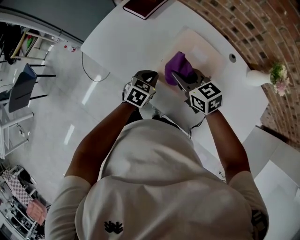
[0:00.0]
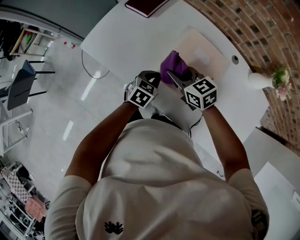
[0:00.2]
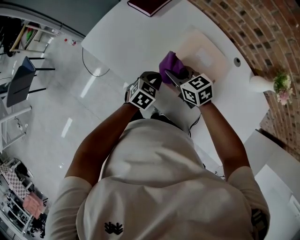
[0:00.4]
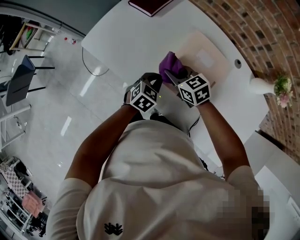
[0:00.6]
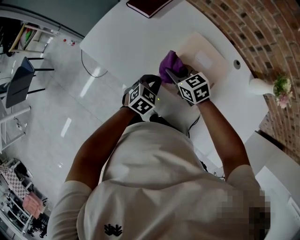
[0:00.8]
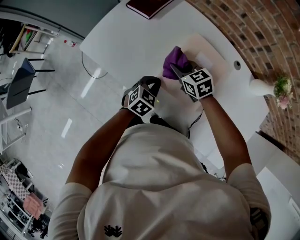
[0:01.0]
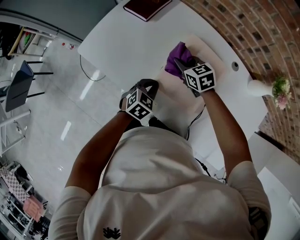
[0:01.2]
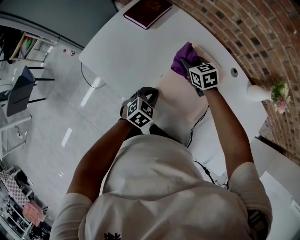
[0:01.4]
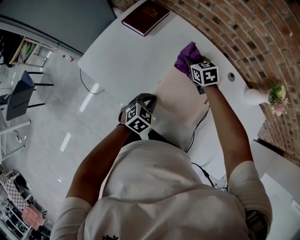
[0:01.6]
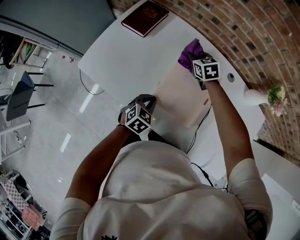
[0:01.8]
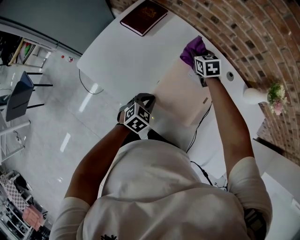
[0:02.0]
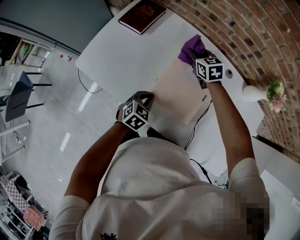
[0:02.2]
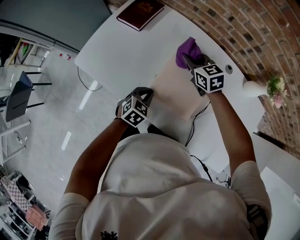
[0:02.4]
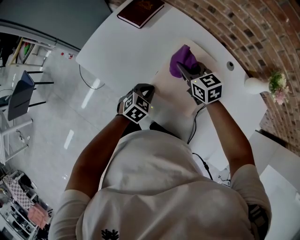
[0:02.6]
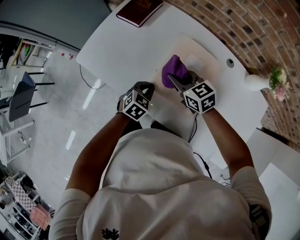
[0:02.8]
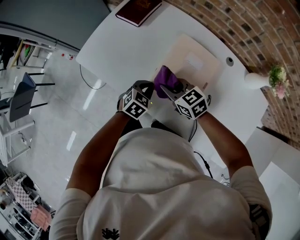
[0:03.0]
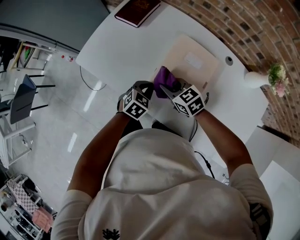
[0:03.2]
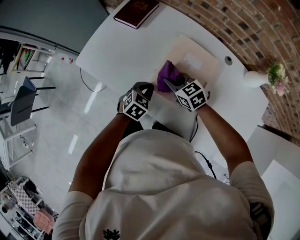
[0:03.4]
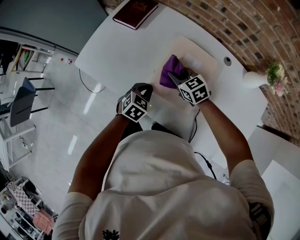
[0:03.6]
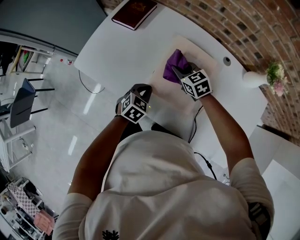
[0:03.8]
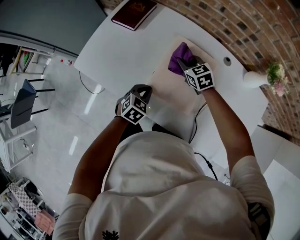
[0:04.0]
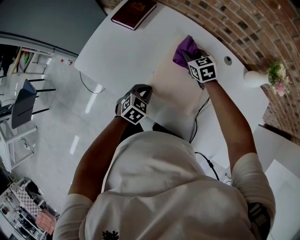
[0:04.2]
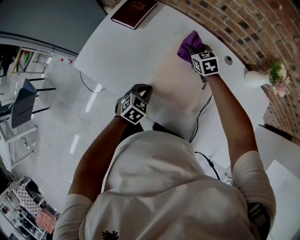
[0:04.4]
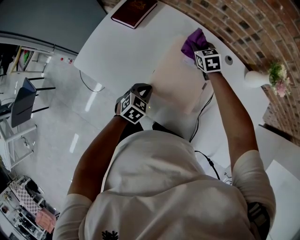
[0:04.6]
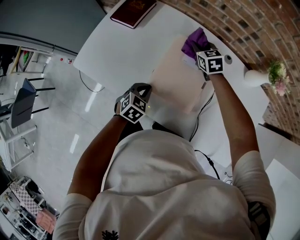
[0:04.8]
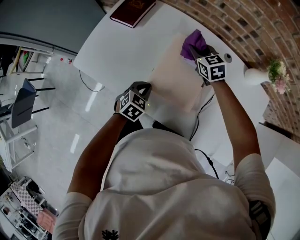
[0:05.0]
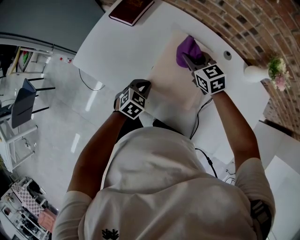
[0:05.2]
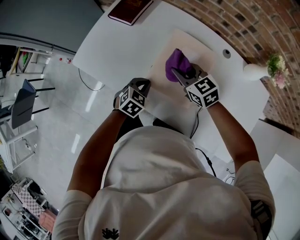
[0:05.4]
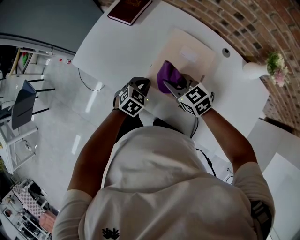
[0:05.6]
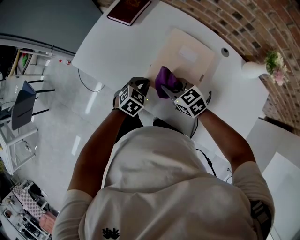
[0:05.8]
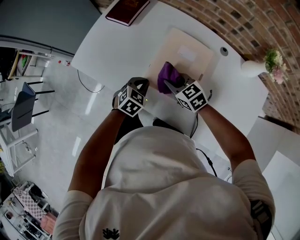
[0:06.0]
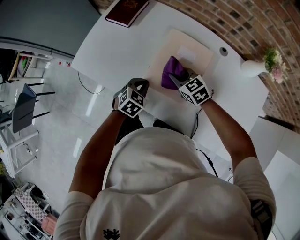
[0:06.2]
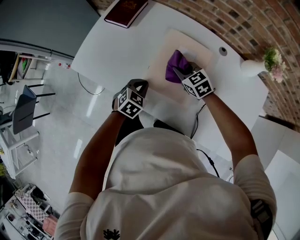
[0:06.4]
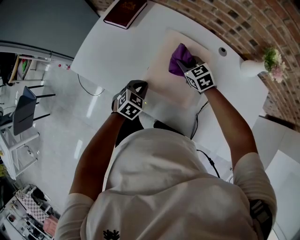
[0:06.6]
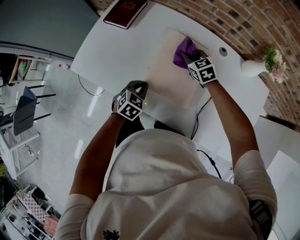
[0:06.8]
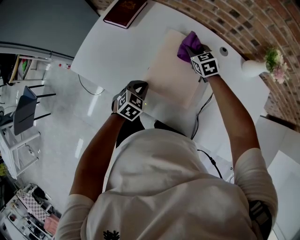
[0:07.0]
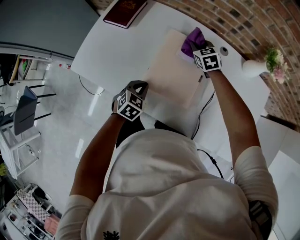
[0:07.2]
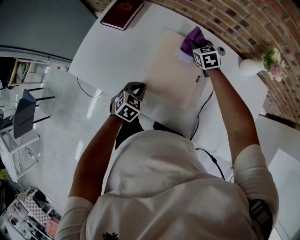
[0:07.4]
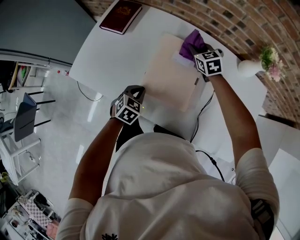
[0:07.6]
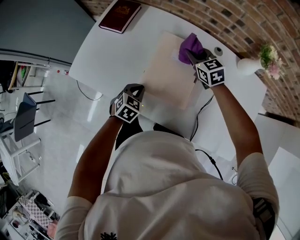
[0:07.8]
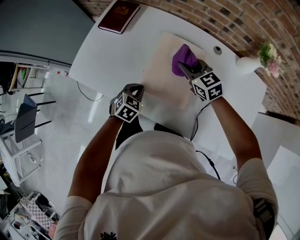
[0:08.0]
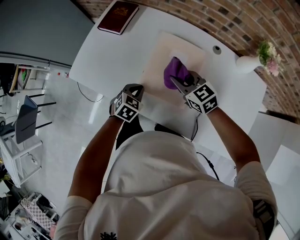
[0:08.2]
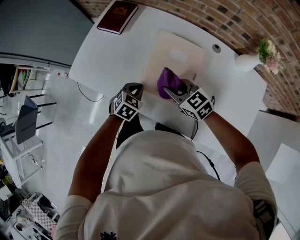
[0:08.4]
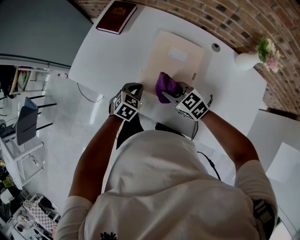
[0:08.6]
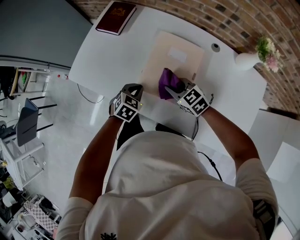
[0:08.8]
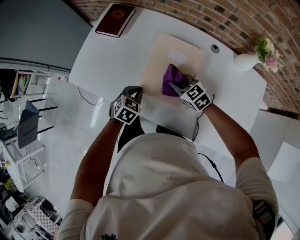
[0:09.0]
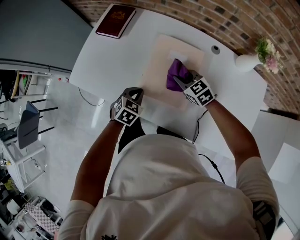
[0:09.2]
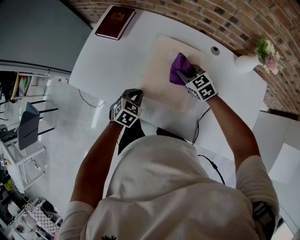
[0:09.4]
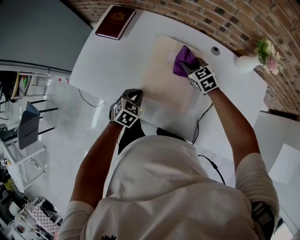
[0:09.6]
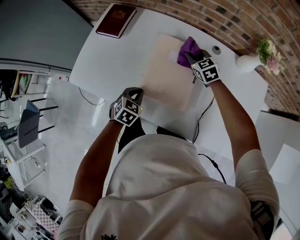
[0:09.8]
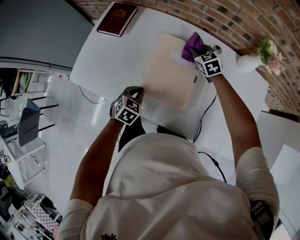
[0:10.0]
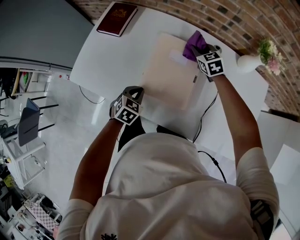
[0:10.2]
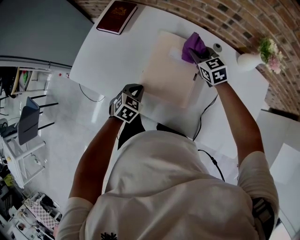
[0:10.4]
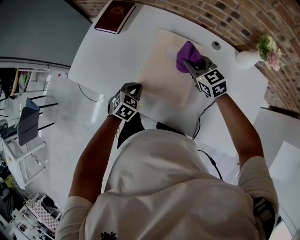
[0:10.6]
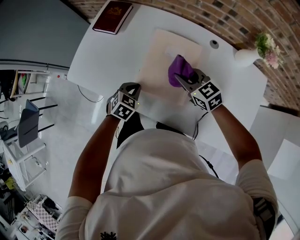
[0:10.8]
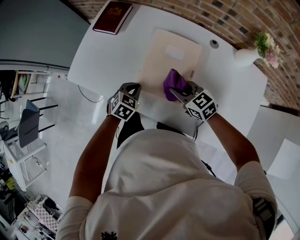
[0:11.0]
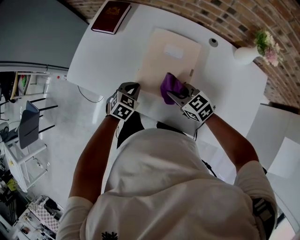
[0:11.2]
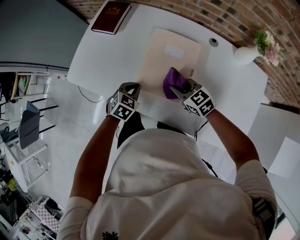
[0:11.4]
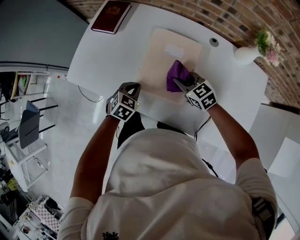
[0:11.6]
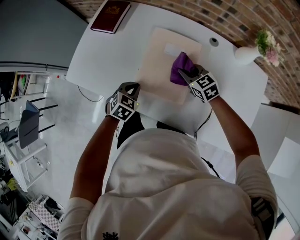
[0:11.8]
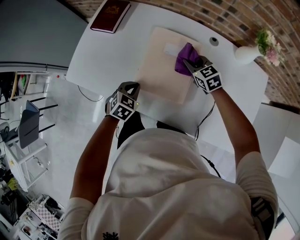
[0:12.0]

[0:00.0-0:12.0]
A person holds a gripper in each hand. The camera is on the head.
0:00.0 to 0:01.6: The right gripper travels forward and downward by some 25 cm, and rotates roughly 20 degrees.
0:01.6 to 0:03.0: The right gripper shifts approximately 20 cm backward, and swivels roughly 20 degrees.
0:03.0 to 0:04.4: The right gripper heads forward and to the right, covering some 25 cm, and rotates about 30 degrees.
0:04.4 to 0:06.0: The right gripper shifts roughly 20 cm backward, and swivels approximately 20 degrees.
0:06.0 to 0:07.6: The right gripper moves forward and to the right, some 25 cm, and turns by approximately 30 degrees.
0:07.6 to 0:09.0: The right gripper goes approximately 20 cm backward and to the left, and turns by approximately 20 degrees.
0:09.0 to 0:10.4: The right gripper travels forward and to the right by roughly 15 cm.
0:10.4 to 0:12.0: The right gripper travels backward and back again, about 20 cm each way.

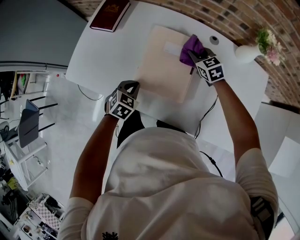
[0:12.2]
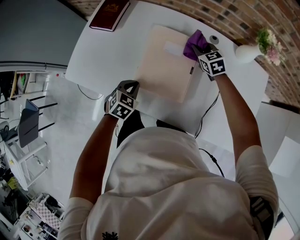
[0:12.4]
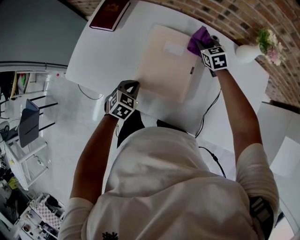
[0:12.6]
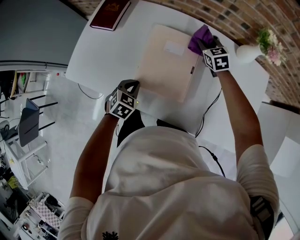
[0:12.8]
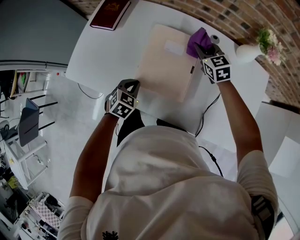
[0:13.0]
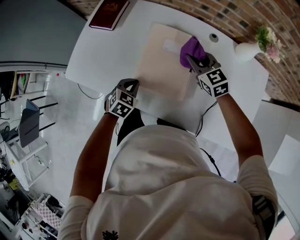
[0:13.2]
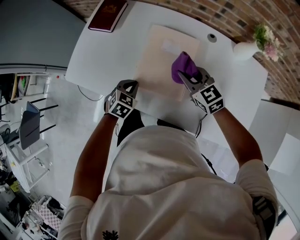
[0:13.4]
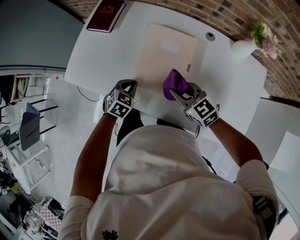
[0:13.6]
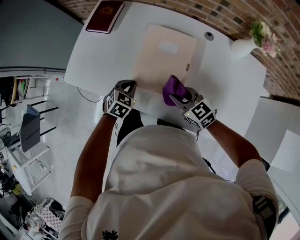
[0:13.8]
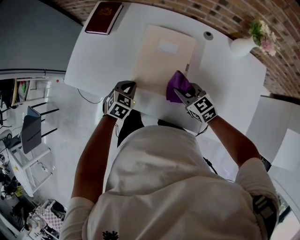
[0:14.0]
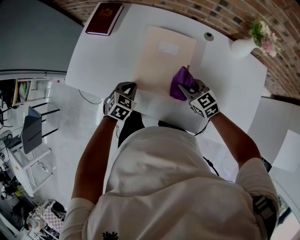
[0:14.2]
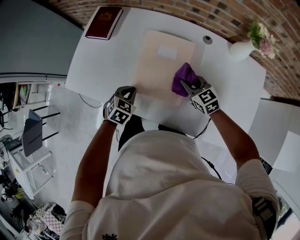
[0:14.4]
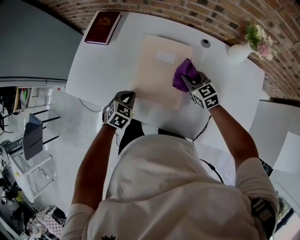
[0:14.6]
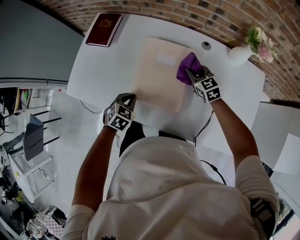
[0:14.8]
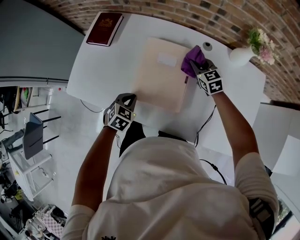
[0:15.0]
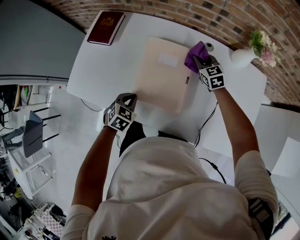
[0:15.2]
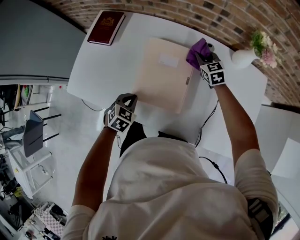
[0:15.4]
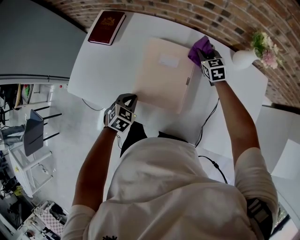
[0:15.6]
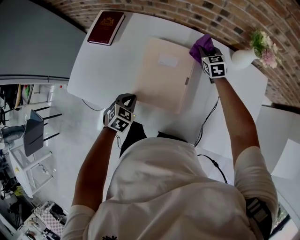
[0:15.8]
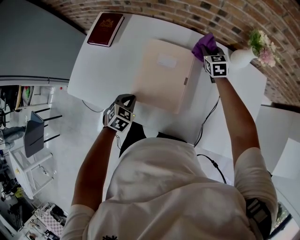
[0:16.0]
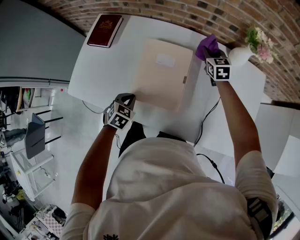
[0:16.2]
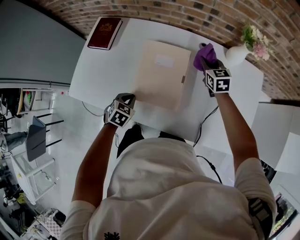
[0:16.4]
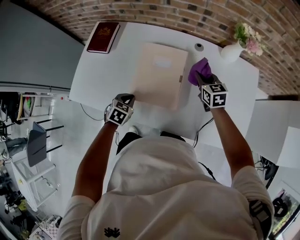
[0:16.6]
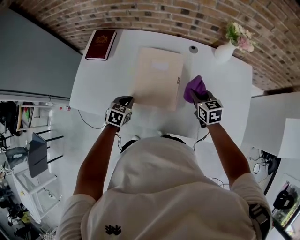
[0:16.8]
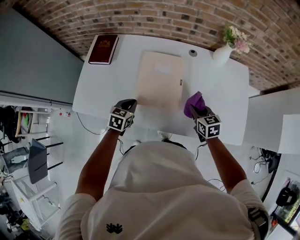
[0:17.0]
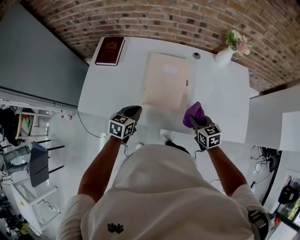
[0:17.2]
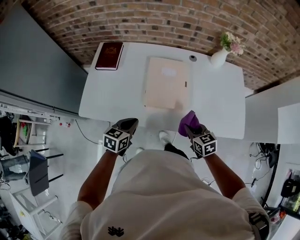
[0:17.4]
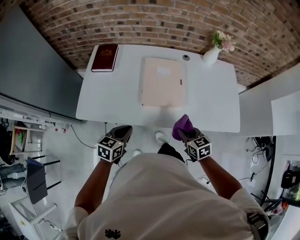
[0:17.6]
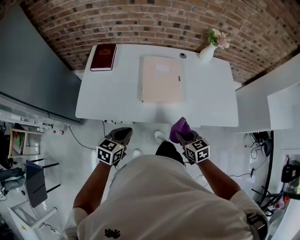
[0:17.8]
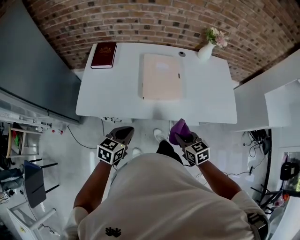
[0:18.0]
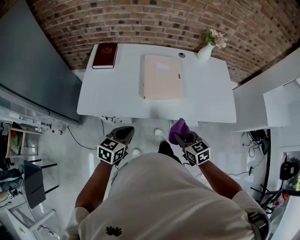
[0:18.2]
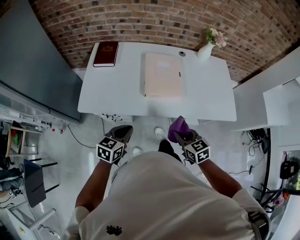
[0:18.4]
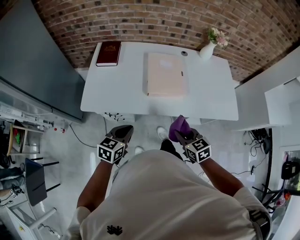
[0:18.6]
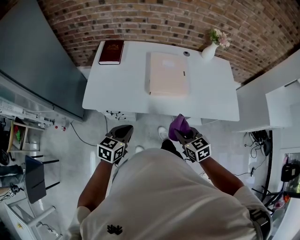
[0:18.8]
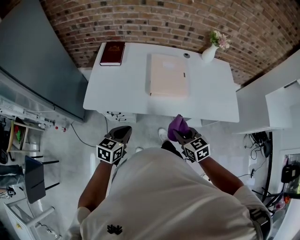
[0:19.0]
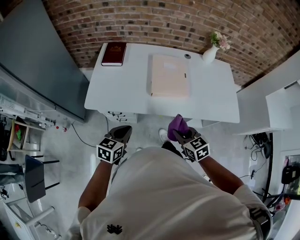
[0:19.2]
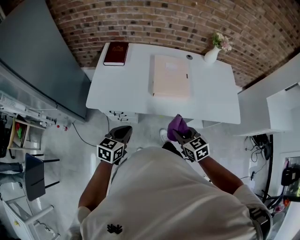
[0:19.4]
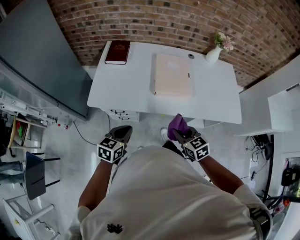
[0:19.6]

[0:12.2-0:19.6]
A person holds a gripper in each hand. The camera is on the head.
0:12.2 to 0:13.6: The right gripper shifts approximately 20 cm backward and to the left.
0:13.6 to 0:15.2: The right gripper heads forward and to the right, covering about 25 cm, and rotates some 30 degrees.
0:15.2 to 0:16.6: The right gripper travels backward and upward by some 10 cm.
0:16.6 to 0:18.2: The left gripper is displaced backward, upward and to the left by approximately 35 cm, and rotates some 30 degrees. The right gripper is displaced backward and to the left by roughly 50 cm.
0:18.2 to 0:19.6: The grippers both shift to the left by approximately 5 cm.

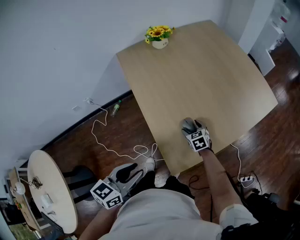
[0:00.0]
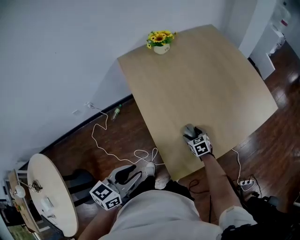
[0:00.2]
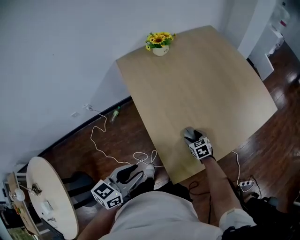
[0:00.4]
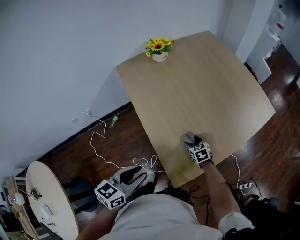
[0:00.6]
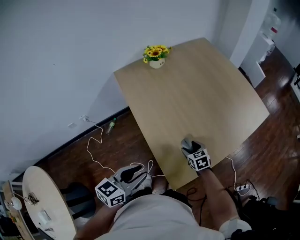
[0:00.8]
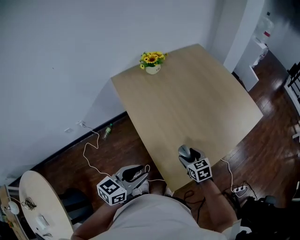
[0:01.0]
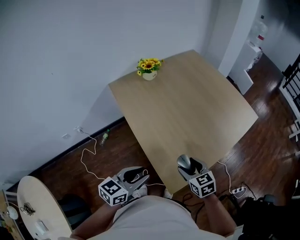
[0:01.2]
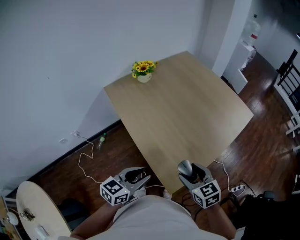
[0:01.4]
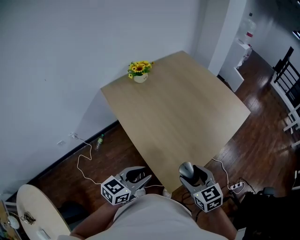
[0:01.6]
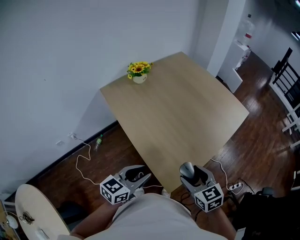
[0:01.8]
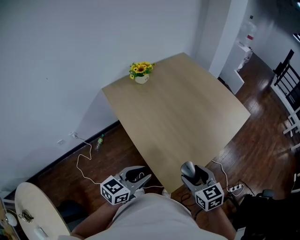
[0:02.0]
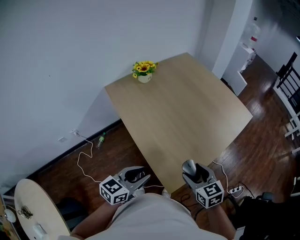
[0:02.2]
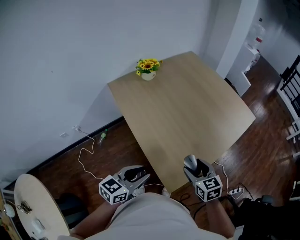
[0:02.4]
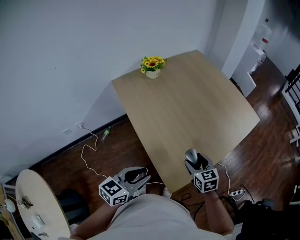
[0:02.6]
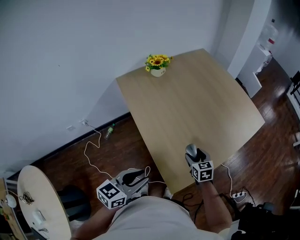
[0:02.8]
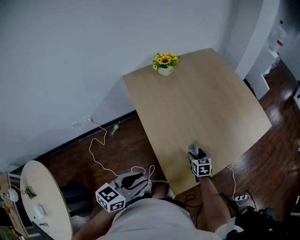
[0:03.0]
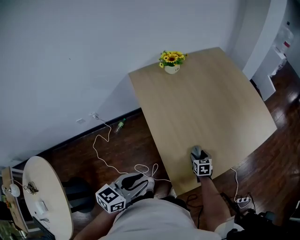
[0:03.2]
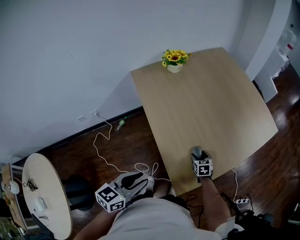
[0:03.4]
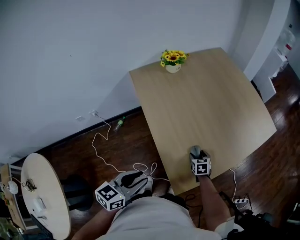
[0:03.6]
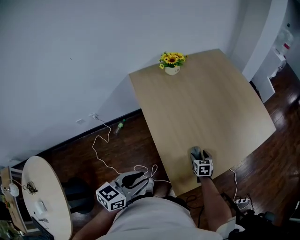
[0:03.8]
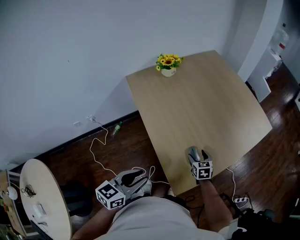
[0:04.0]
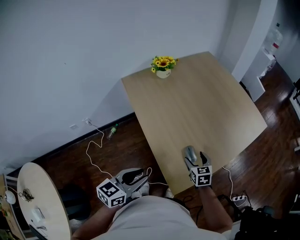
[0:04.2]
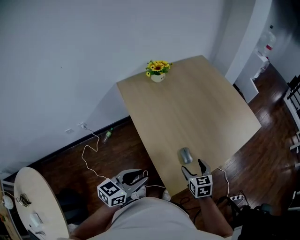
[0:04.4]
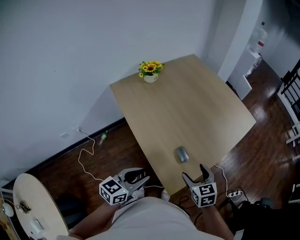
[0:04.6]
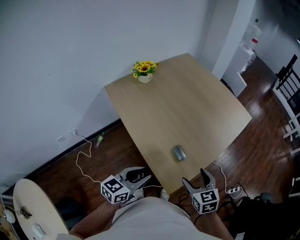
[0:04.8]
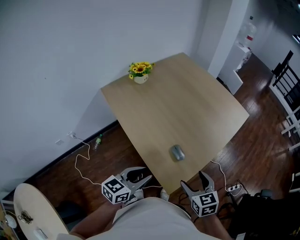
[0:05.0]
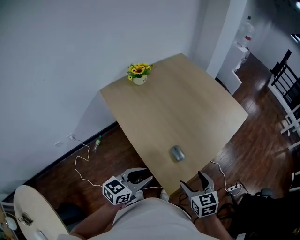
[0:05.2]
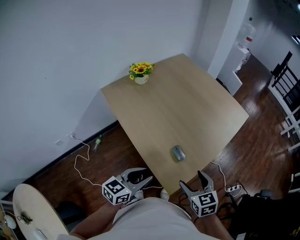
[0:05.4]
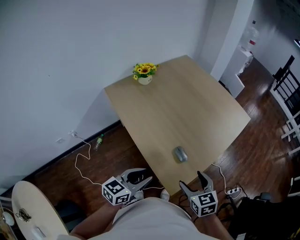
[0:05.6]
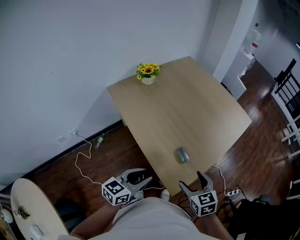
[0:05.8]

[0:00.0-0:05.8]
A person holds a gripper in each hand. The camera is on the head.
0:00.0 to 0:01.4: The right gripper goes approximately 30 cm upward and backward, while the left gripper shifts approximately 5 cm forward, and swivels about 20 degrees.
0:01.4 to 0:02.8: The right gripper shifts roughly 20 cm downward and forward.
0:02.8 to 0:04.4: The right gripper is displaced backward by some 5 cm, and reaches about 15 cm downward, then returns.
0:04.4 to 0:05.8: The right gripper heads backward and upward, covering about 10 cm.
